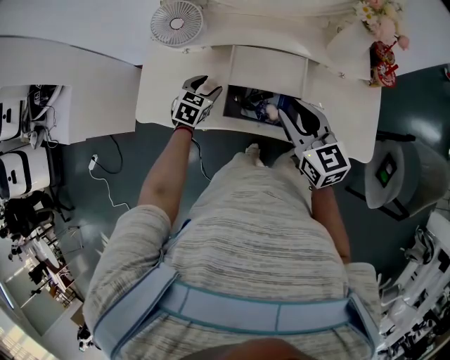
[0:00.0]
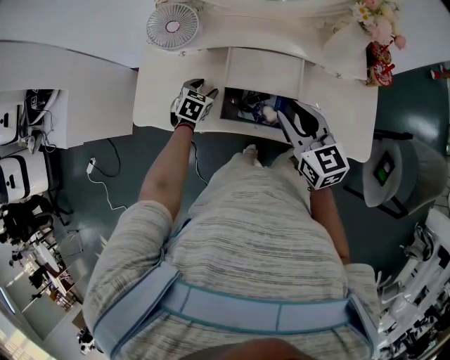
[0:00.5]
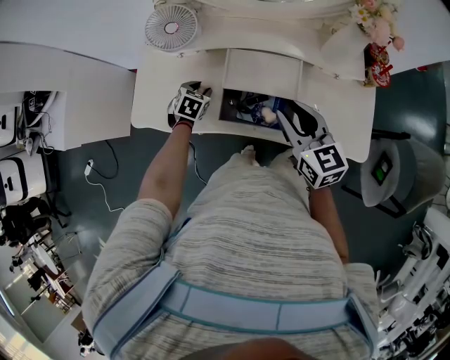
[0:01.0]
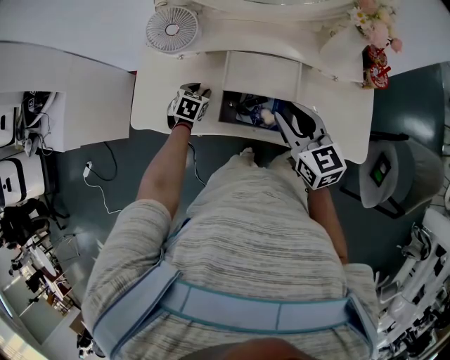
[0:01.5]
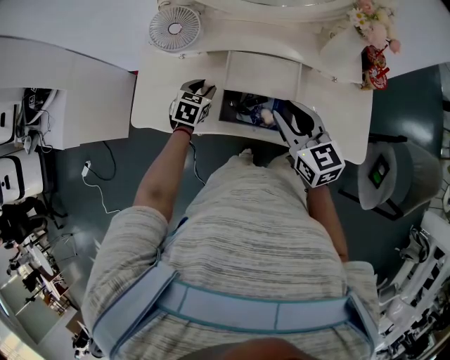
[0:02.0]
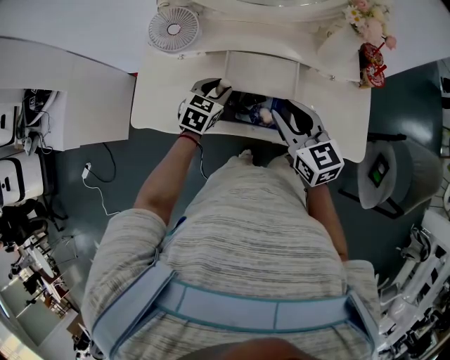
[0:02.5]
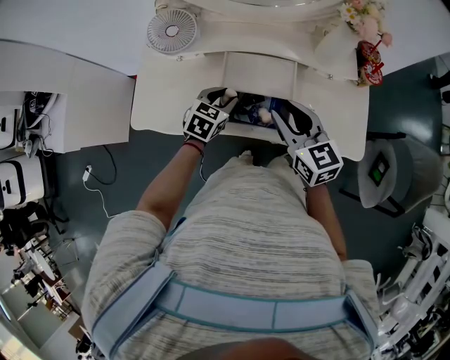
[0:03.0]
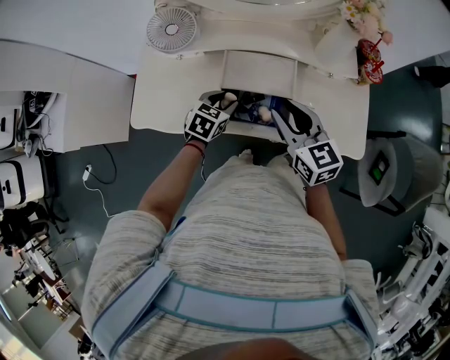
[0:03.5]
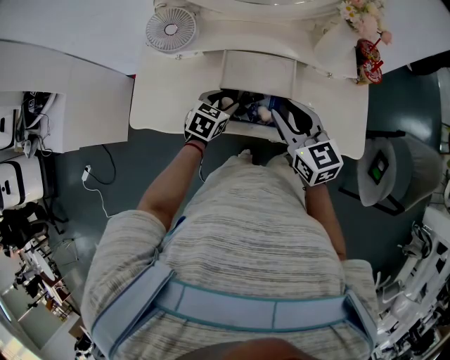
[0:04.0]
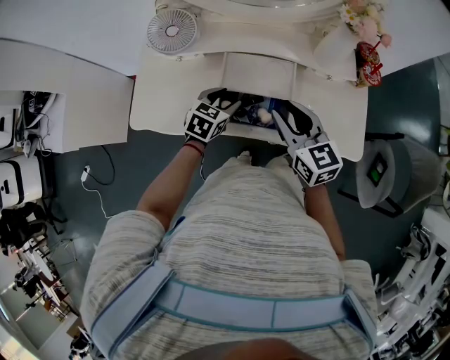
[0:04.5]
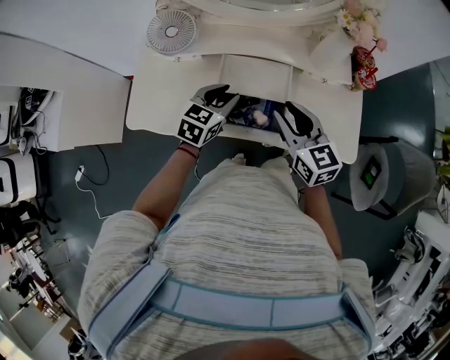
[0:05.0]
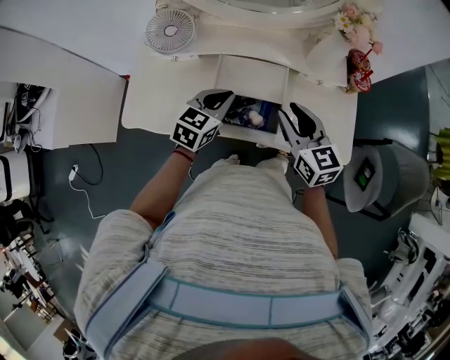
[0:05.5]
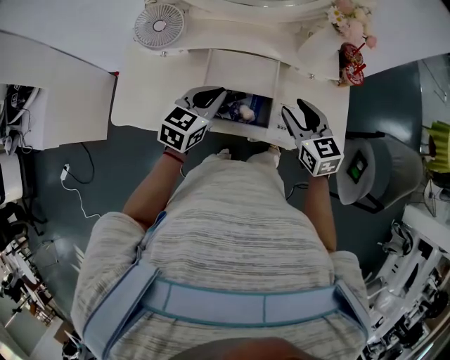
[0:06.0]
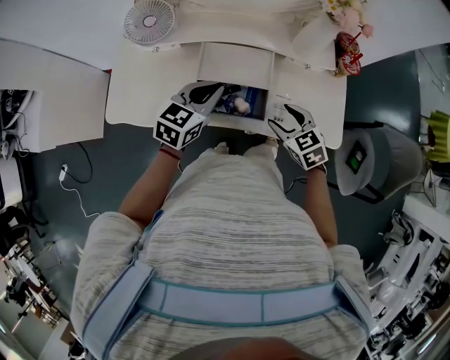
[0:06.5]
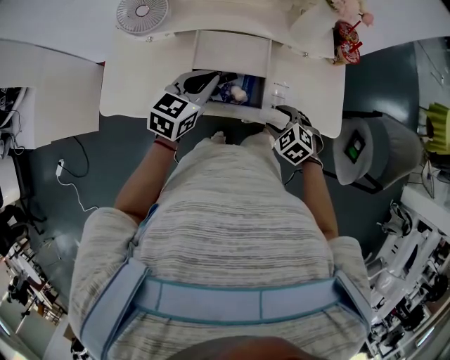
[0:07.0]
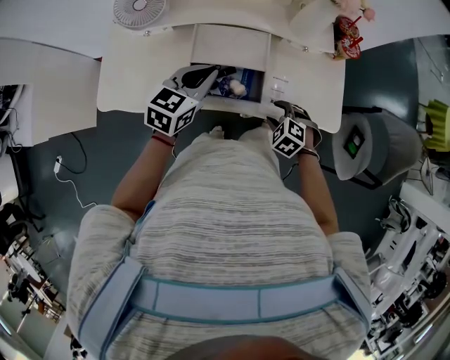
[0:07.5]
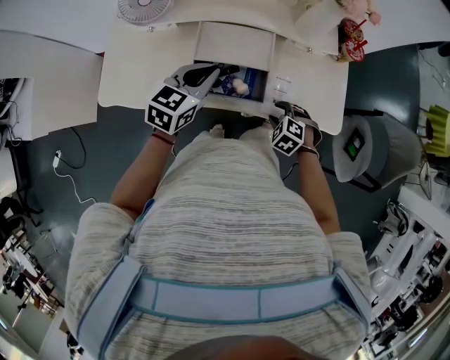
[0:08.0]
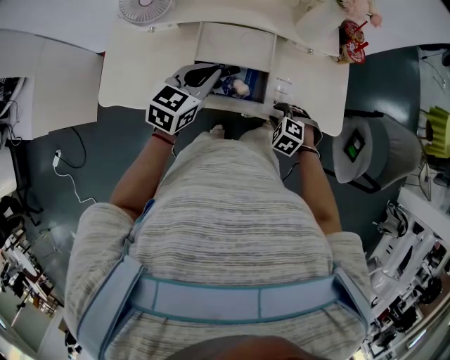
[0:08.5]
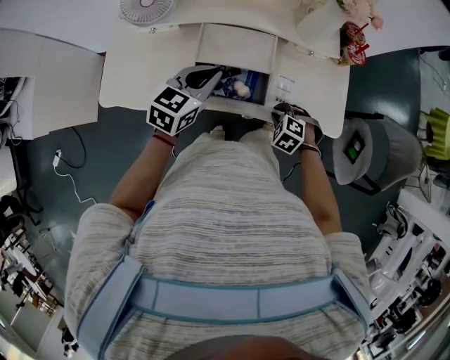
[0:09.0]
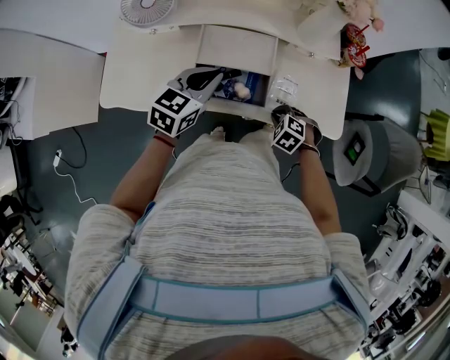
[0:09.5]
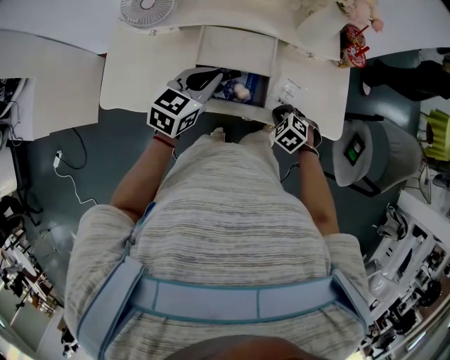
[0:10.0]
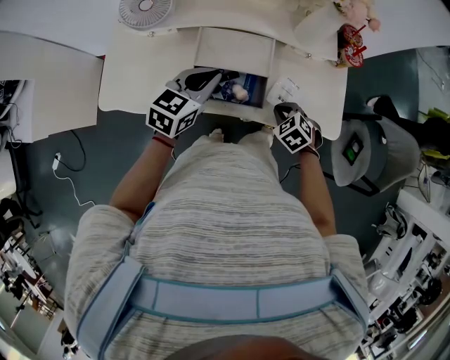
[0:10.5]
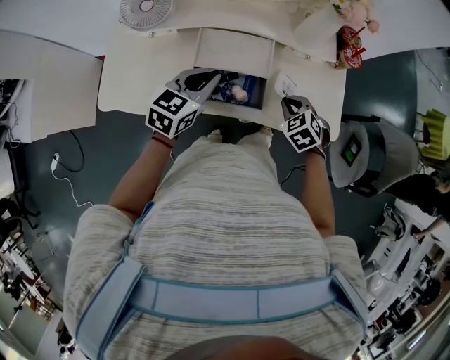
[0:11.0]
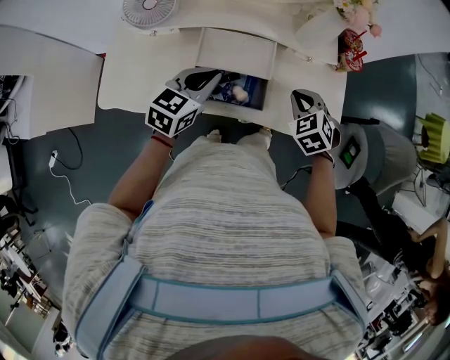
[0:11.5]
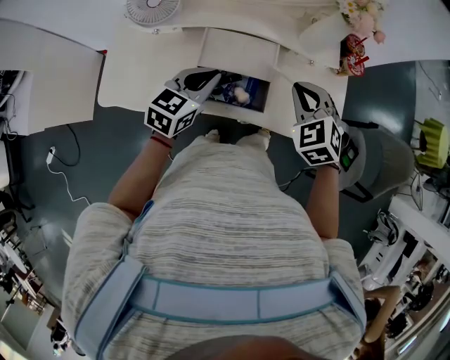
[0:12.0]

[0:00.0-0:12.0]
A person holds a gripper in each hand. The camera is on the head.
0:00.0 to 0:02.0: The grippers make only small movements.
0:02.0 to 0:04.0: The left gripper shifts approximately 10 cm to the right and backward.
0:04.0 to 0:06.0: The right gripper is displaced to the right by about 10 cm. The left gripper shifts some 10 cm upward, rotates approximately 20 degrees, and closes.
0:06.0 to 0:08.0: The right gripper moves downward and backward, about 20 cm, and angles its fingers downward, by approximately 40 degrees.
0:08.0 to 0:10.0: The right gripper closes up.
0:10.0 to 0:12.0: The right gripper heads upward, covering approximately 20 cm, and rotates about 30 degrees.

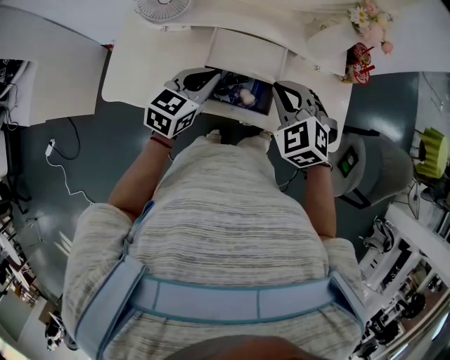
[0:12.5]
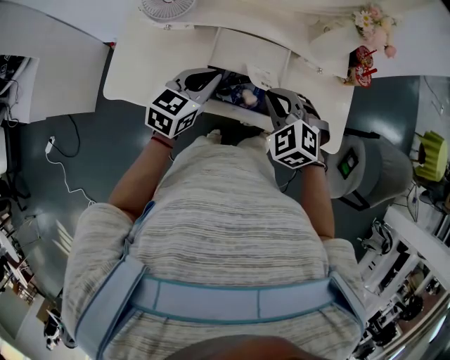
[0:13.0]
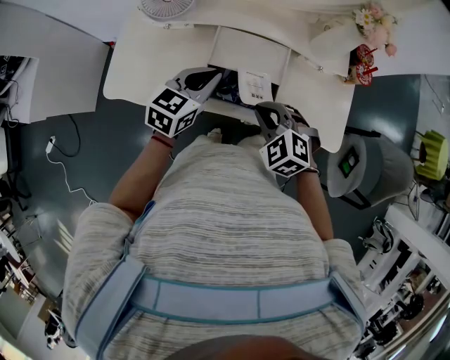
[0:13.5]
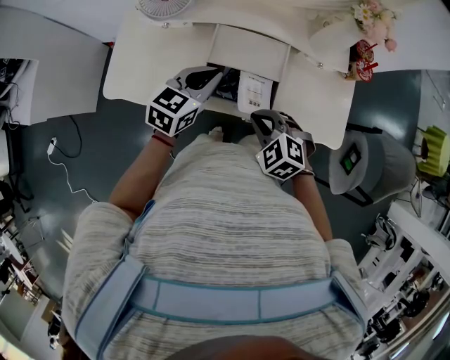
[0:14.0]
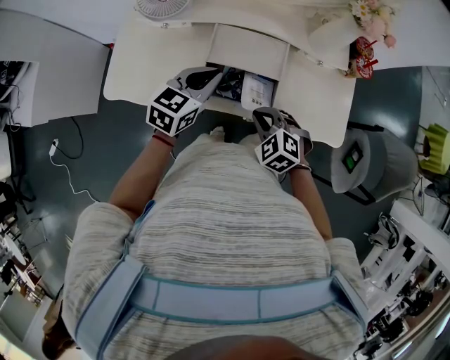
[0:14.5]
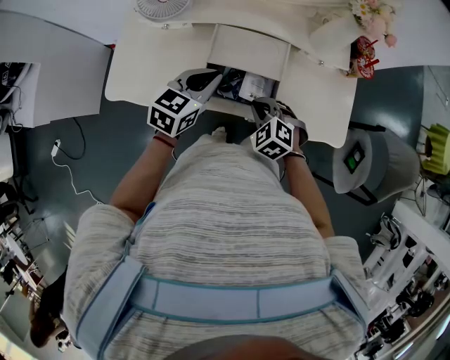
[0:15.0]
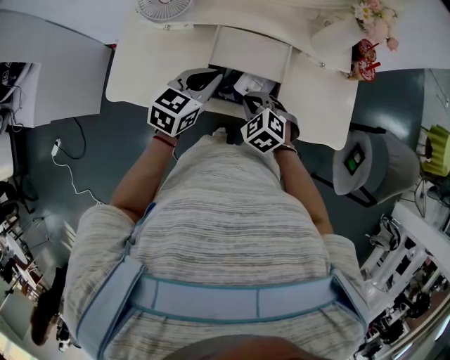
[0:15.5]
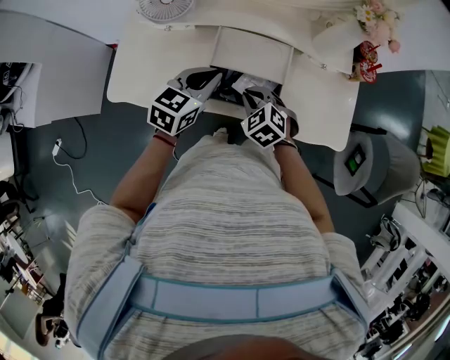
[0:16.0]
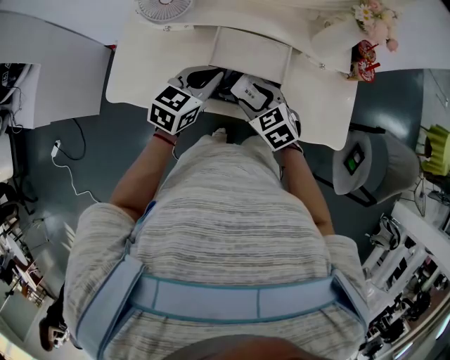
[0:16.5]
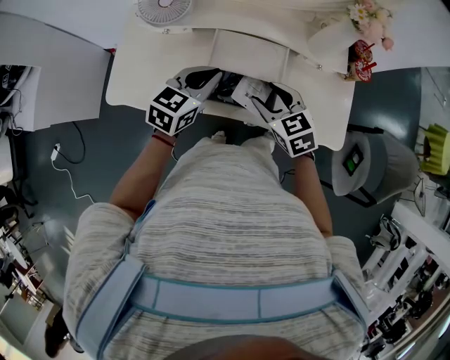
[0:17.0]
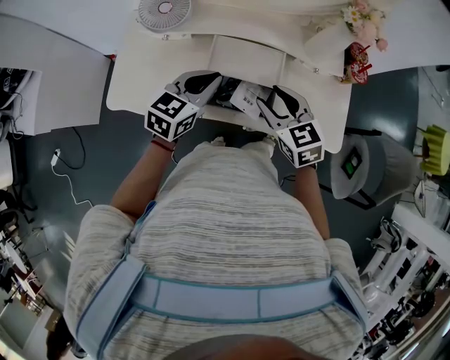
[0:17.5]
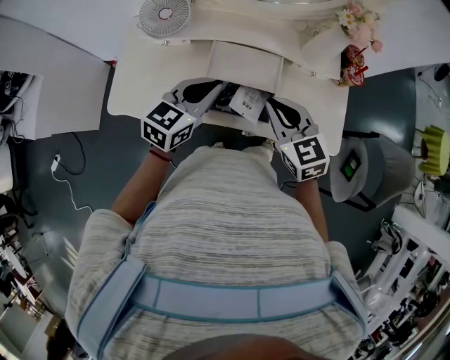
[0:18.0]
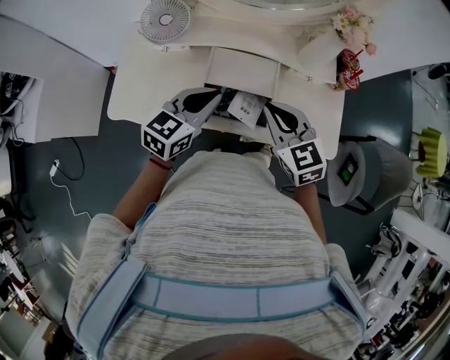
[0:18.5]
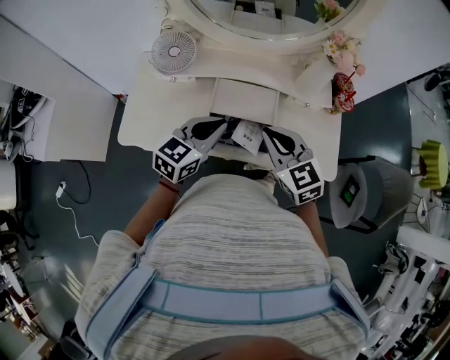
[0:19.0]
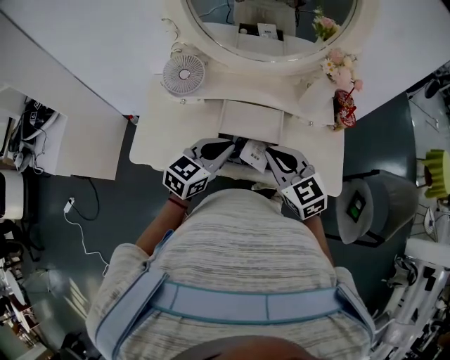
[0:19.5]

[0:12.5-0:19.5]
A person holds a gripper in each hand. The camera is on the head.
0:12.5 to 0:14.5: The right gripper shifts roughly 15 cm downward and backward.
0:14.5 to 0:16.0: The right gripper travels forward by about 5 cm.
0:16.0 to 0:17.5: The right gripper is displaced upward and to the right by about 15 cm, swivels some 30 degrees, and opens.
0:17.5 to 0:19.5: The left gripper shifts about 5 cm backward; the right gripper shifts some 5 cm upward, and closes.

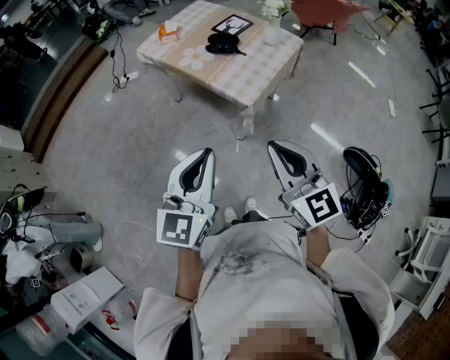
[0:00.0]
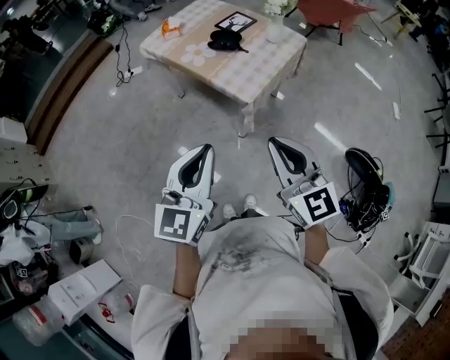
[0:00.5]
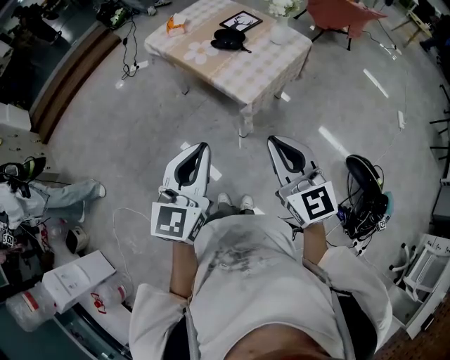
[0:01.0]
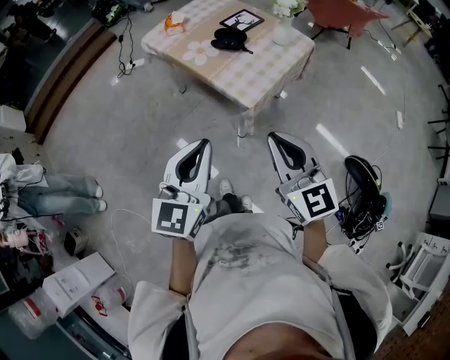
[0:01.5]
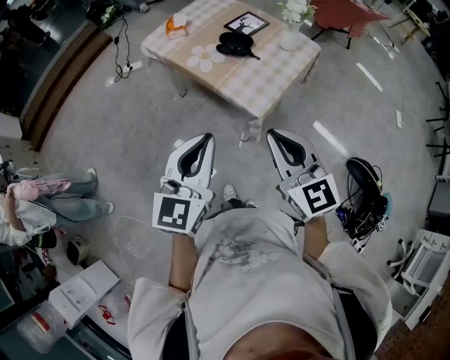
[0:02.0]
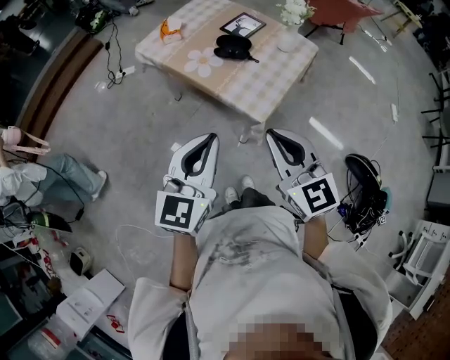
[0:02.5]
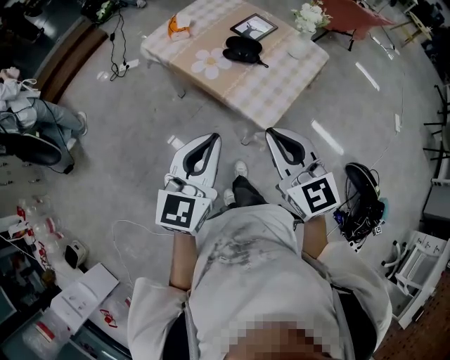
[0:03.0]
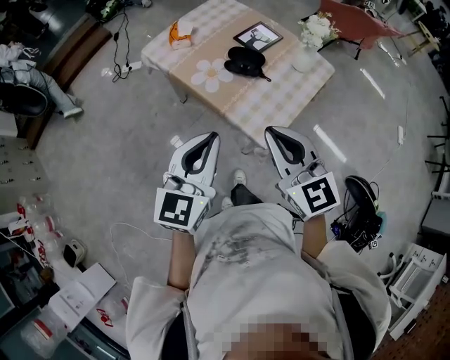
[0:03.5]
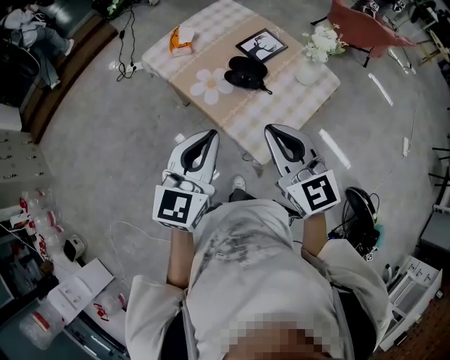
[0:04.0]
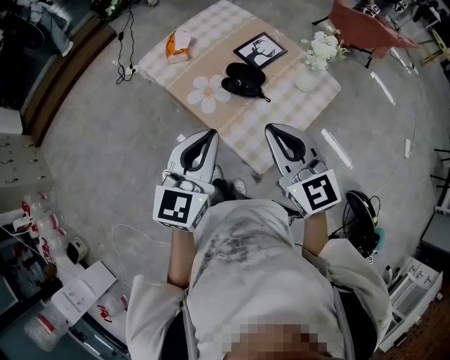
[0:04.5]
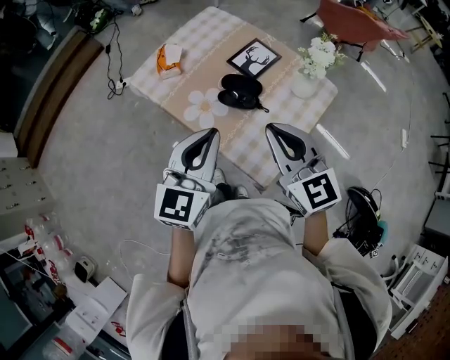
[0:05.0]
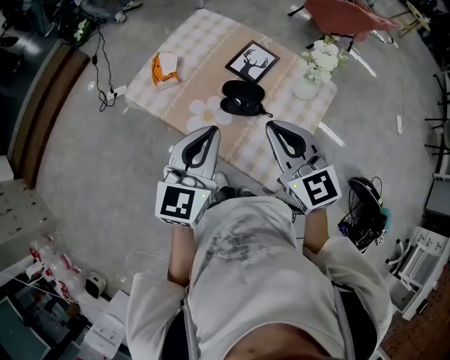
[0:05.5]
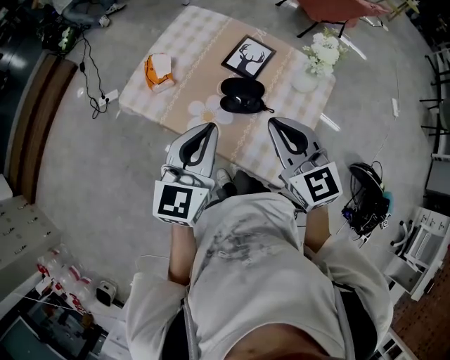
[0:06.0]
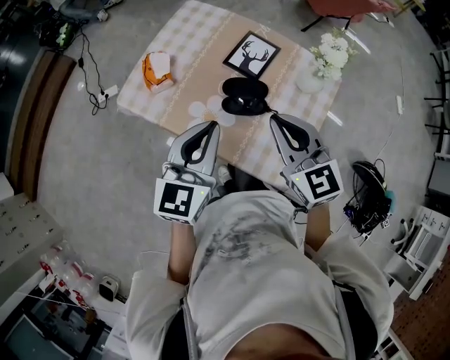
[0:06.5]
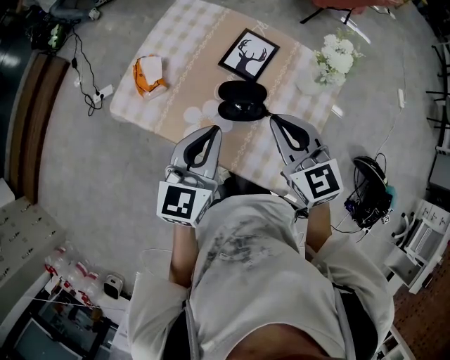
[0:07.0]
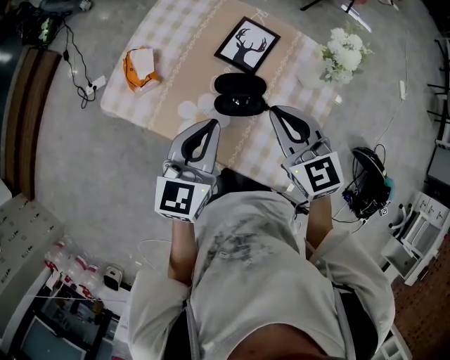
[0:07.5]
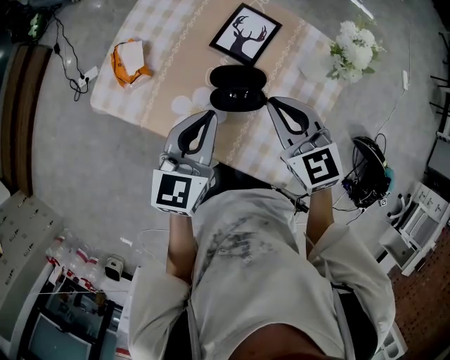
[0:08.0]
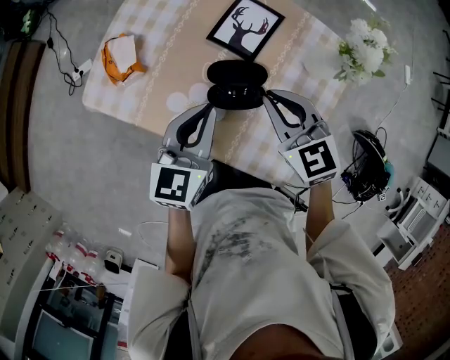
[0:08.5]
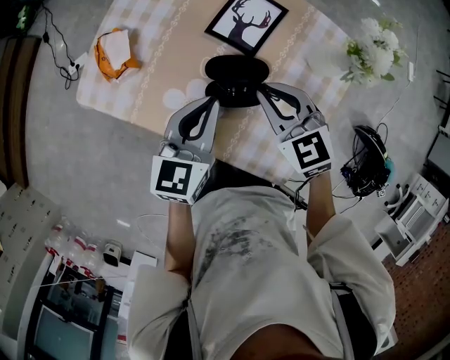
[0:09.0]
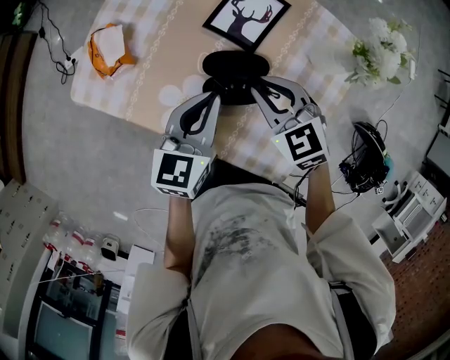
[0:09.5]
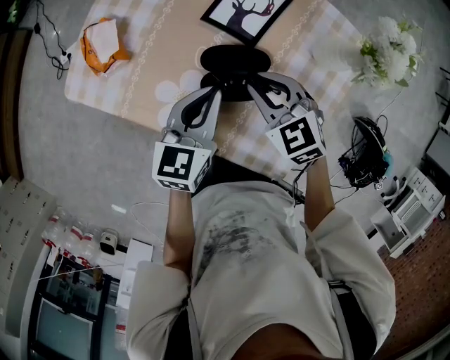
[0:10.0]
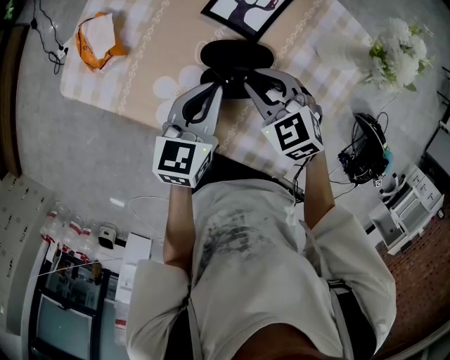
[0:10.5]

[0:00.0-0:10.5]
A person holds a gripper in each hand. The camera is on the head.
0:00.0 to 0:02.0: The two grippers go some 10 cm forward.
0:02.0 to 0:04.0: Both grippers move forward, roughly 20 cm.
0:04.0 to 0:06.5: Both grippers move forward, roughly 20 cm.
0:06.5 to 0:08.5: The grippers both shift downward and forward by some 15 cm.
0:08.5 to 0:10.5: The two grippers go roughly 10 cm downward. The right gripper swivels approximately 20 degrees.
